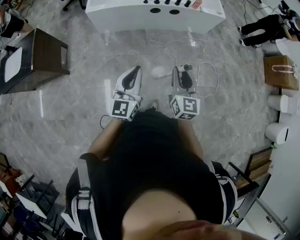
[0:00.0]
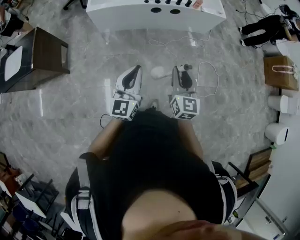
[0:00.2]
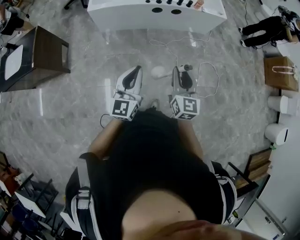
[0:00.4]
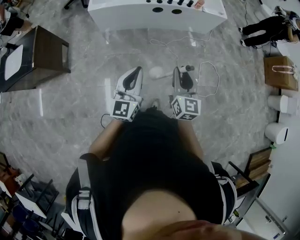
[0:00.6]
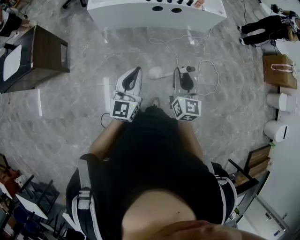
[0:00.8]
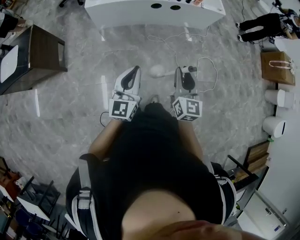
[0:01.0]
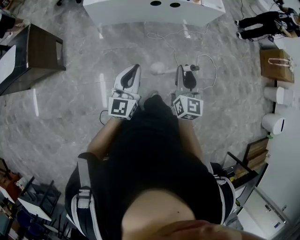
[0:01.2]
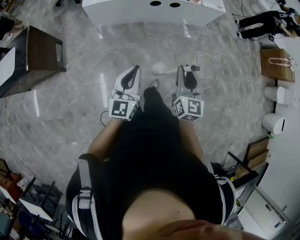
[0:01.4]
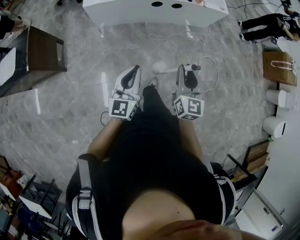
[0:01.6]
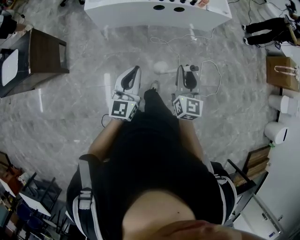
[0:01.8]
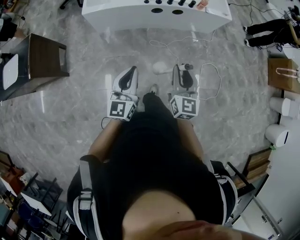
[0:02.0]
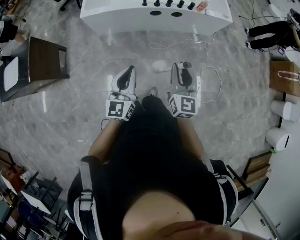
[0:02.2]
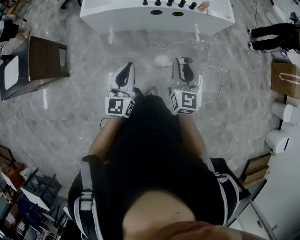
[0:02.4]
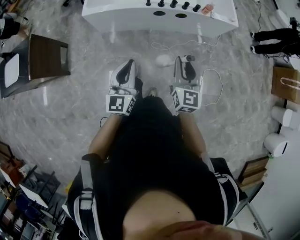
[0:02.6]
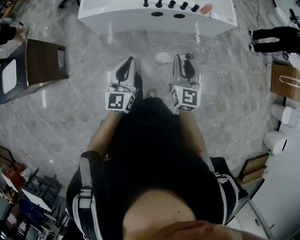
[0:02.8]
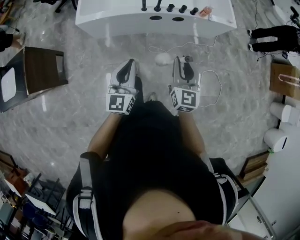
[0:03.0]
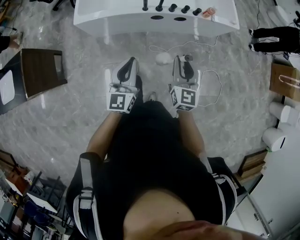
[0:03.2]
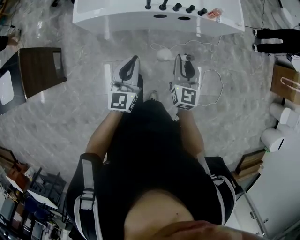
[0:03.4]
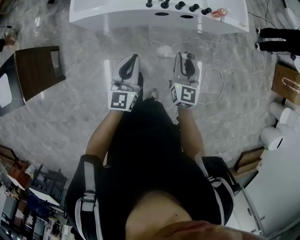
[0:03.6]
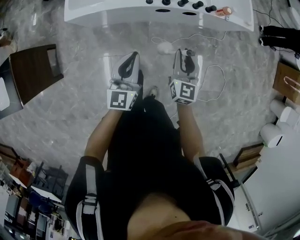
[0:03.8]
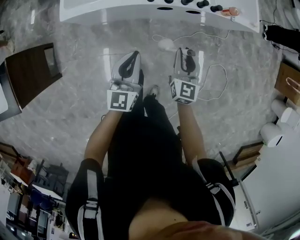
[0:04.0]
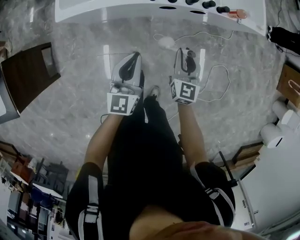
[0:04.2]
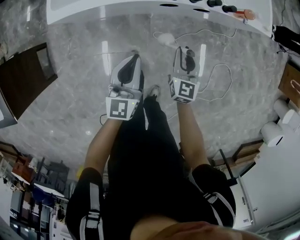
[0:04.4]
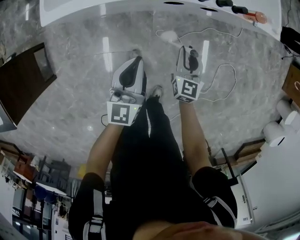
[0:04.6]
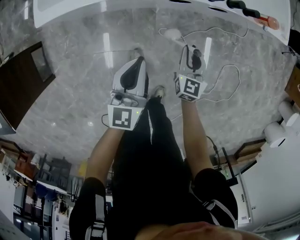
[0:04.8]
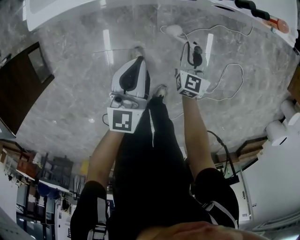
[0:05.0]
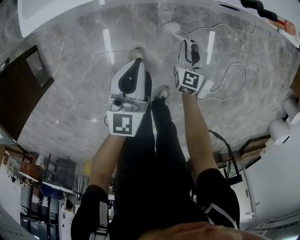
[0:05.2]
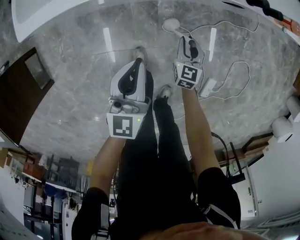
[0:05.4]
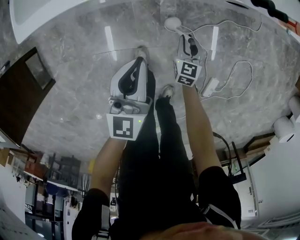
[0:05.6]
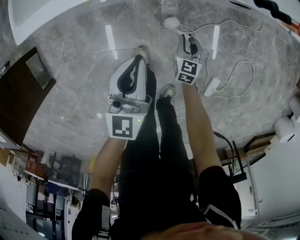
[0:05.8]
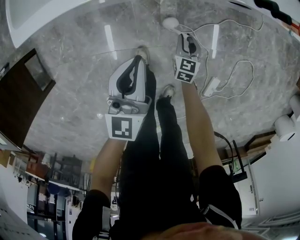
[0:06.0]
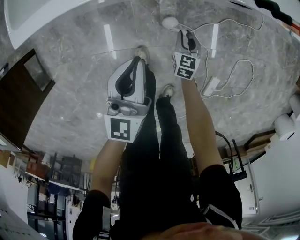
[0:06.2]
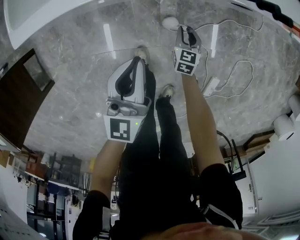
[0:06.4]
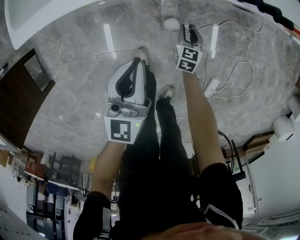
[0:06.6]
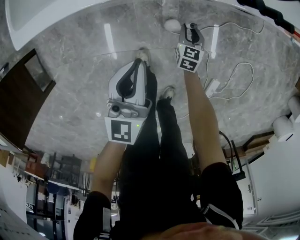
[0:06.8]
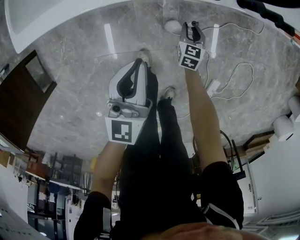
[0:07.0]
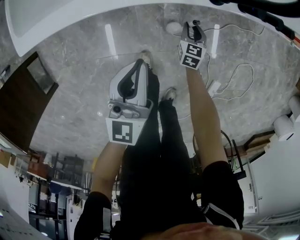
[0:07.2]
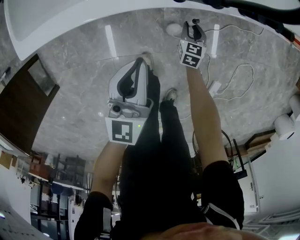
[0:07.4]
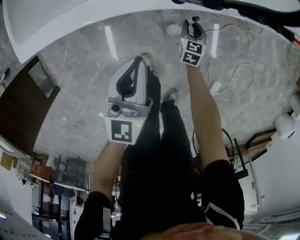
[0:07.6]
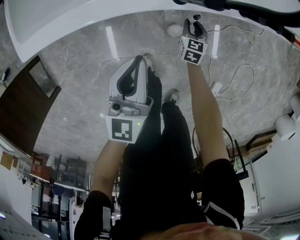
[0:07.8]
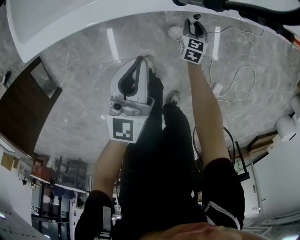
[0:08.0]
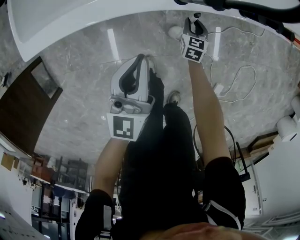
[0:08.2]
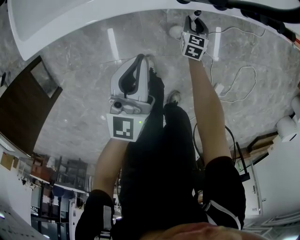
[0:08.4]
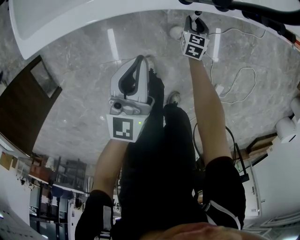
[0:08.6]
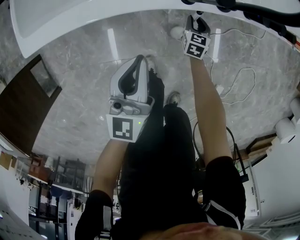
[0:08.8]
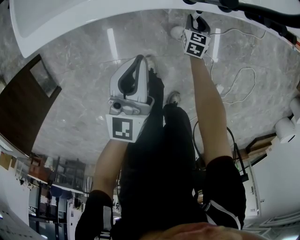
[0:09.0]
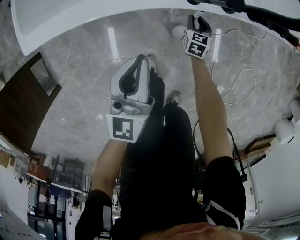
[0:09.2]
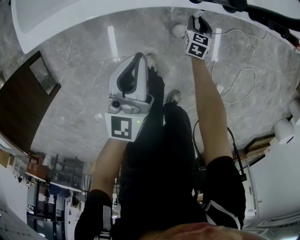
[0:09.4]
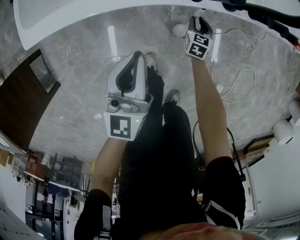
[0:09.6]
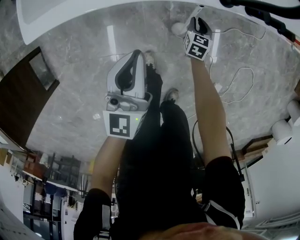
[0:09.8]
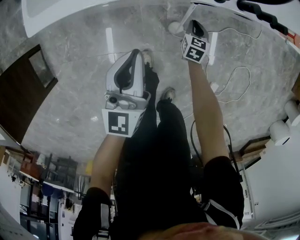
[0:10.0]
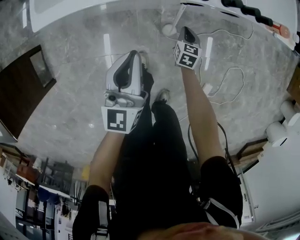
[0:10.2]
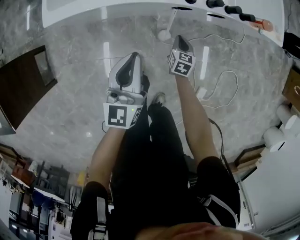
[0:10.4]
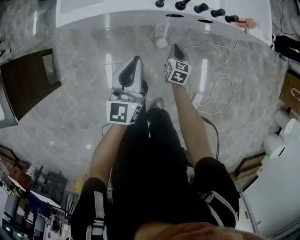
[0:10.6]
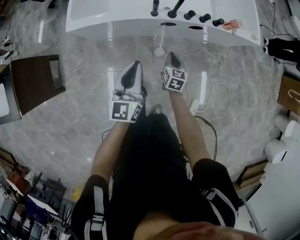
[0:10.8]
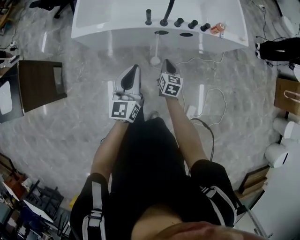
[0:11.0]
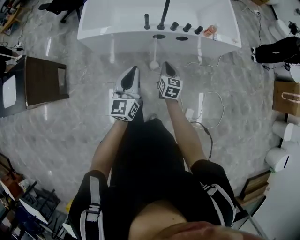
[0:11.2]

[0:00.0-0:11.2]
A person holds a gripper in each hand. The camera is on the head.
0:00.0 to 0:01.6: The left gripper is displaced to the left by some 5 cm.
0:01.6 to 0:03.2: Both grippers move forward, roughly 30 cm.
0:03.2 to 0:04.8: Both grippers travel together downward and forward, about 40 cm.
0:04.8 to 0:06.4: The left gripper moves downward, roughly 10 cm. Meanwhile the right gripper shifts some 25 cm downward.
0:06.4 to 0:08.0: The left gripper moves forward, approximately 5 cm; the right gripper heads forward, covering about 10 cm.
0:08.0 to 0:09.6: The grippers move only a little.
0:09.6 to 0:11.2: The left gripper shifts some 50 cm upward, backward and to the right; the right gripper shifts about 60 cm upward and backward, turns by roughly 30 degrees, and closes its fingers.

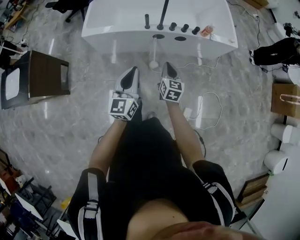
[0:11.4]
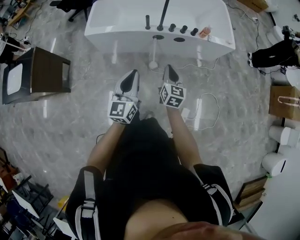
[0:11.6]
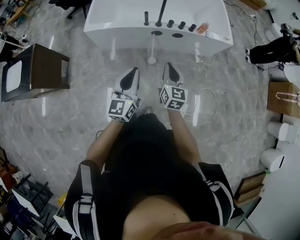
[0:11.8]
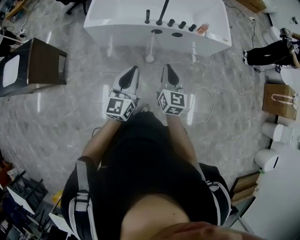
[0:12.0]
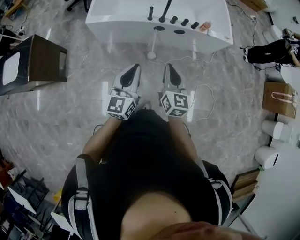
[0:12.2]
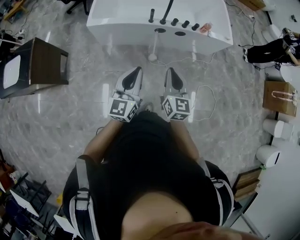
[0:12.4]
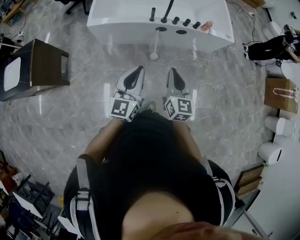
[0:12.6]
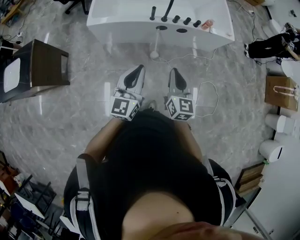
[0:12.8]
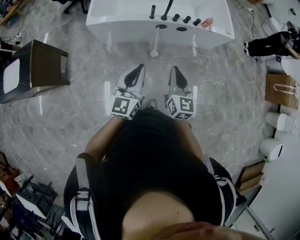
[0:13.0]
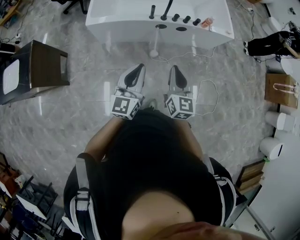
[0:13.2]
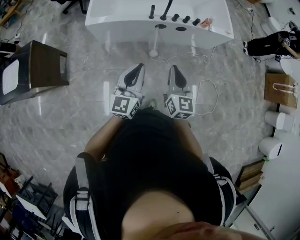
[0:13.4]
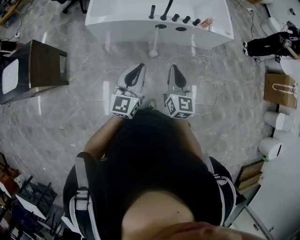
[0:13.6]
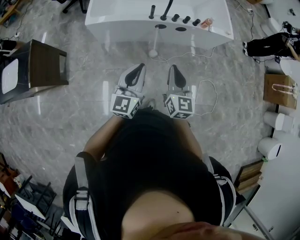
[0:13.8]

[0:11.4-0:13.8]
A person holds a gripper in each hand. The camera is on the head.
0:11.4 to 0:12.6: The left gripper goes about 10 cm backward and upward, while the right gripper moves upward and backward, approximately 25 cm.
0:12.6 to 0:13.8: There are only small adjustments of the grippers.

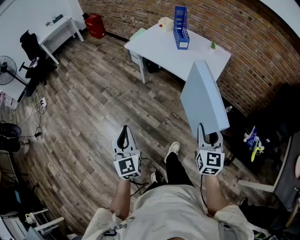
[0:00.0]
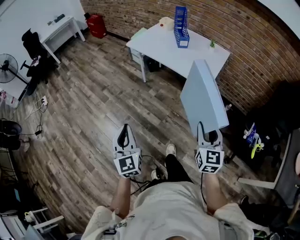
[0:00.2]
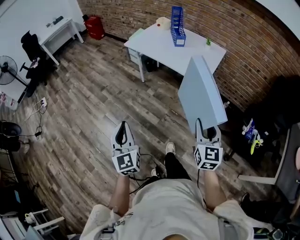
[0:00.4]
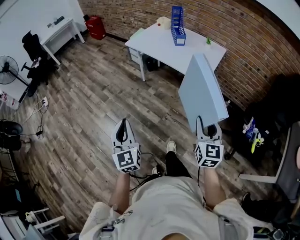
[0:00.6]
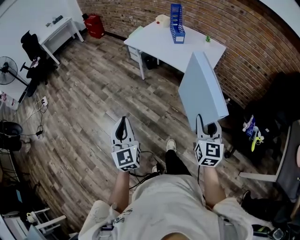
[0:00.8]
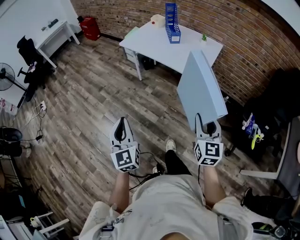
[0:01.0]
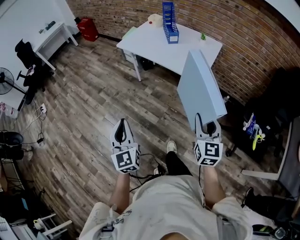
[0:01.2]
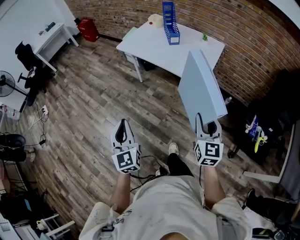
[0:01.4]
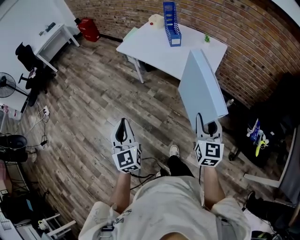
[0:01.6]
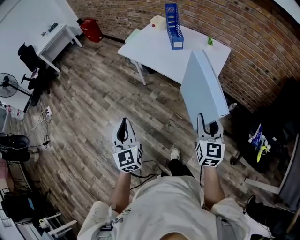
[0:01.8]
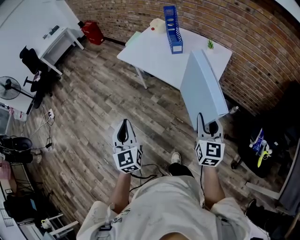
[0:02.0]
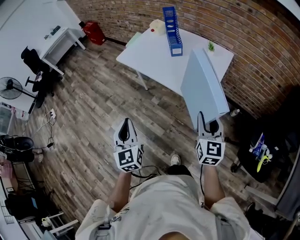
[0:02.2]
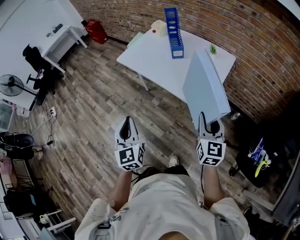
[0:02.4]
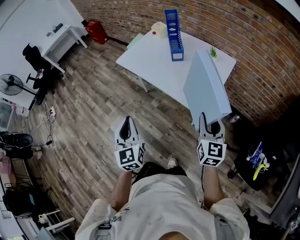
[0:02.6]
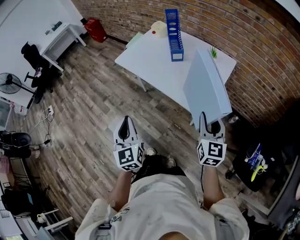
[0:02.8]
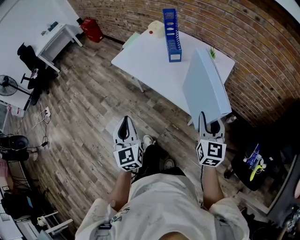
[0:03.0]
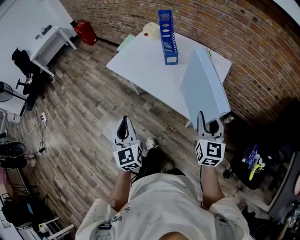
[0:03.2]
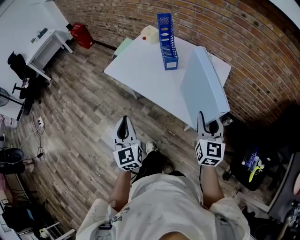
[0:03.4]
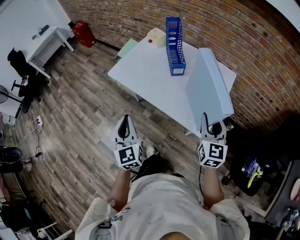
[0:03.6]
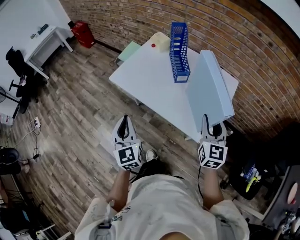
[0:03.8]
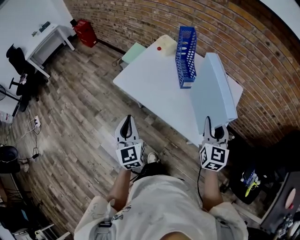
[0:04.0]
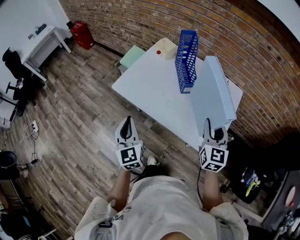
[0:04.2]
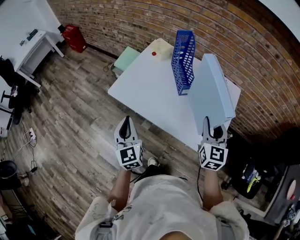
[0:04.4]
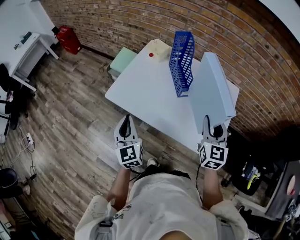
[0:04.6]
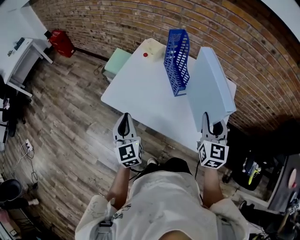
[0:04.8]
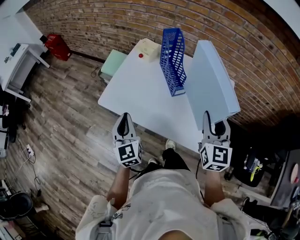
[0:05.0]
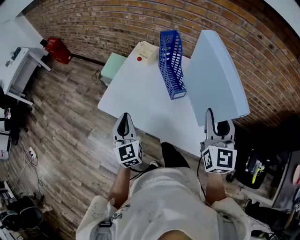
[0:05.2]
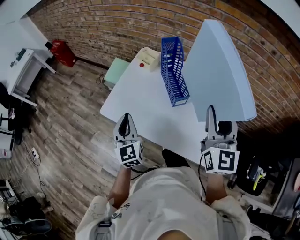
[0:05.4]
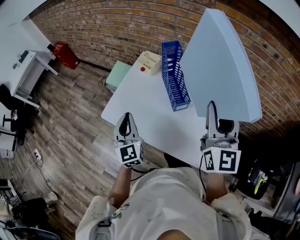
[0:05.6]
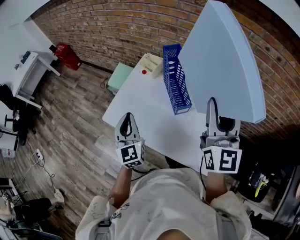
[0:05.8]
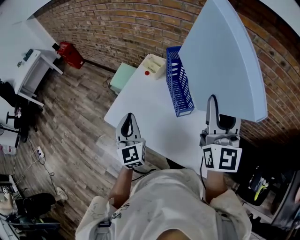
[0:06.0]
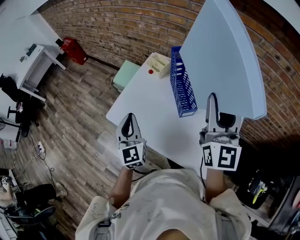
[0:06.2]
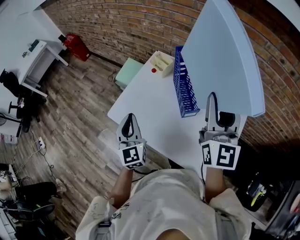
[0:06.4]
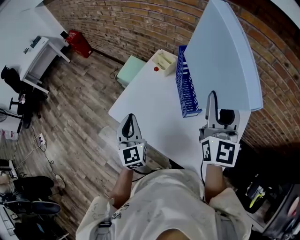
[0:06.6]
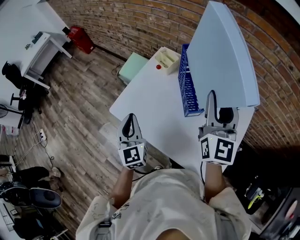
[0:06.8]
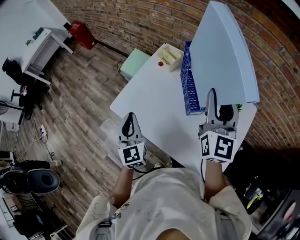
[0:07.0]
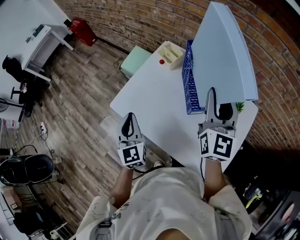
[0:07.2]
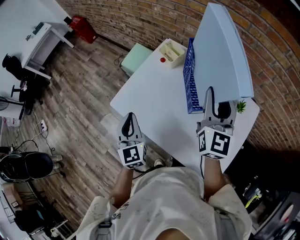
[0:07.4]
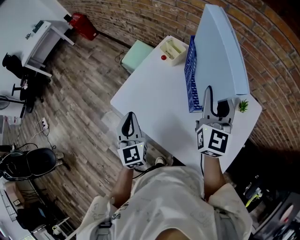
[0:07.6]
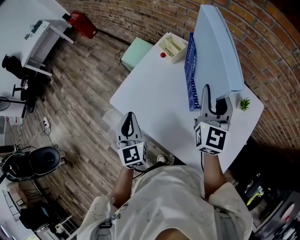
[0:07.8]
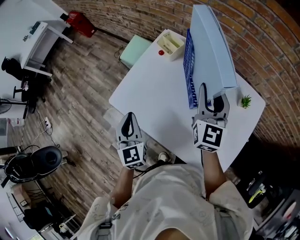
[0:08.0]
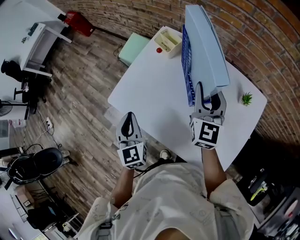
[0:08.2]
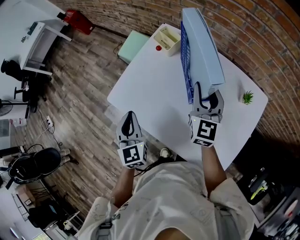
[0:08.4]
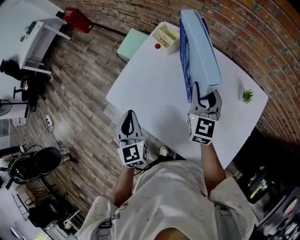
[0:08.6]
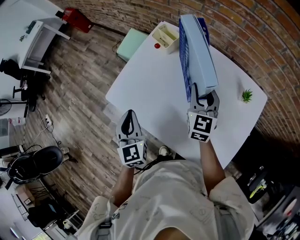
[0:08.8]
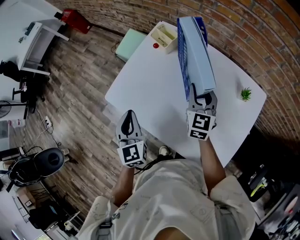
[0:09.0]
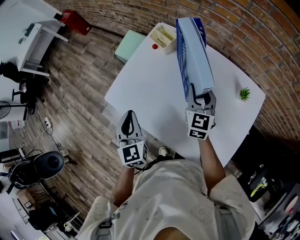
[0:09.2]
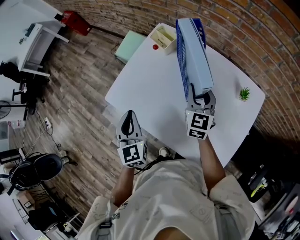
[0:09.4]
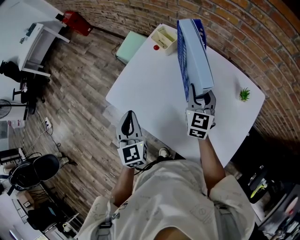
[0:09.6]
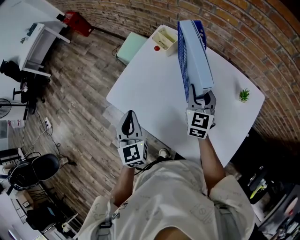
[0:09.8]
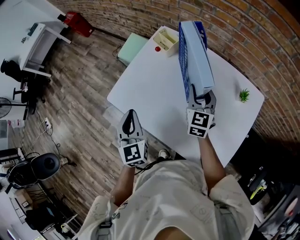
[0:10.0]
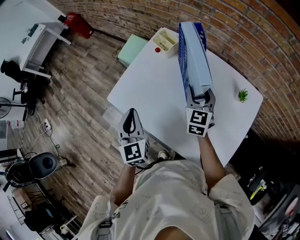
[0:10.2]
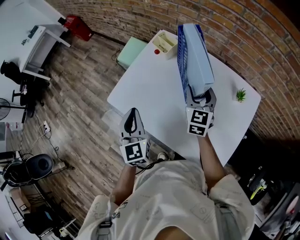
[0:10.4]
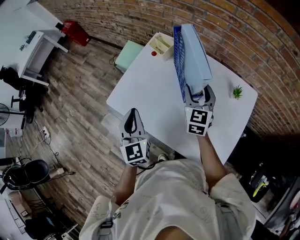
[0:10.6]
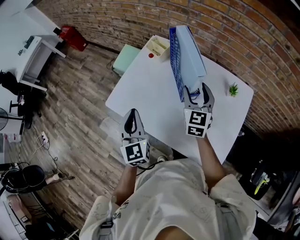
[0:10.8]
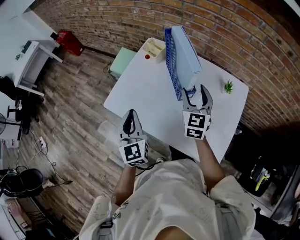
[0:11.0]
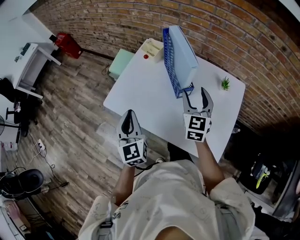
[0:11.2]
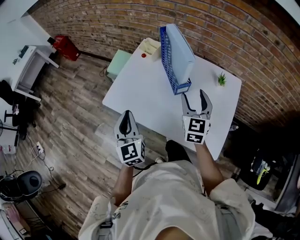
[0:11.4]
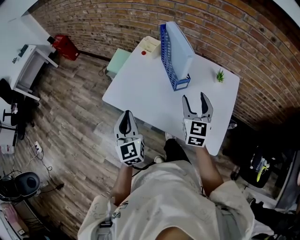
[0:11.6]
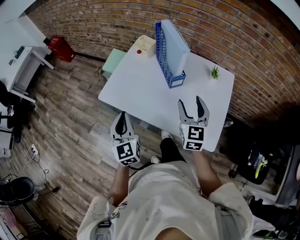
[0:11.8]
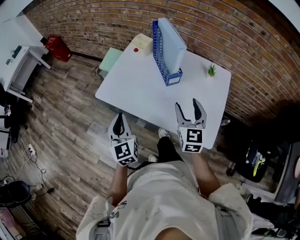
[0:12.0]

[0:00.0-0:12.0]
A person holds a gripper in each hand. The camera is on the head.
0:00.0 to 0:01.6: The two grippers go approximately 5 cm forward.
0:01.6 to 0:03.0: Both grippers move forward and to the right, about 20 cm.
0:03.0 to 0:04.4: Both grippers travel together forward, about 25 cm.
0:04.4 to 0:06.0: The left gripper goes some 15 cm forward; the right gripper heads upward and forward, covering some 20 cm, and swivels approximately 30 degrees.
0:06.0 to 0:07.6: The left gripper changes place by approximately 5 cm. The right gripper moves downward and forward, roughly 15 cm.
0:07.6 to 0:09.0: The right gripper travels downward by some 15 cm.
0:09.0 to 0:10.4: The right gripper opens.
0:10.4 to 0:12.0: The right gripper travels backward by about 20 cm; the left gripper travels backward by roughly 10 cm.
